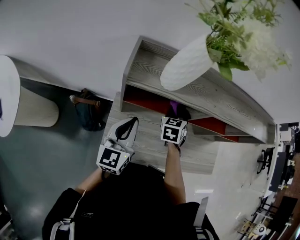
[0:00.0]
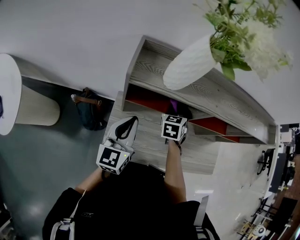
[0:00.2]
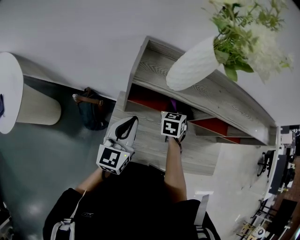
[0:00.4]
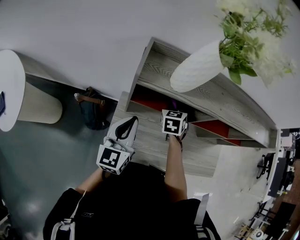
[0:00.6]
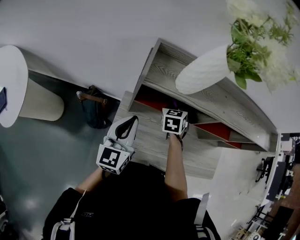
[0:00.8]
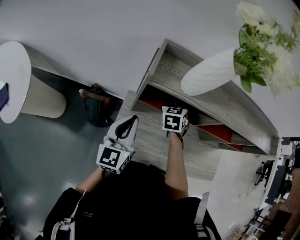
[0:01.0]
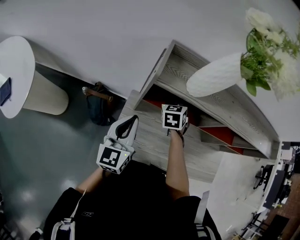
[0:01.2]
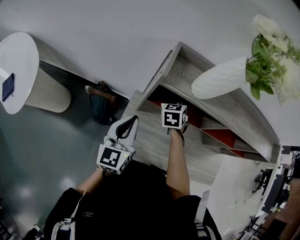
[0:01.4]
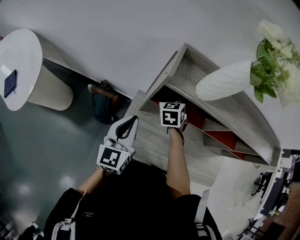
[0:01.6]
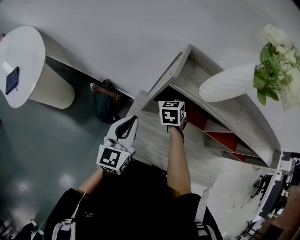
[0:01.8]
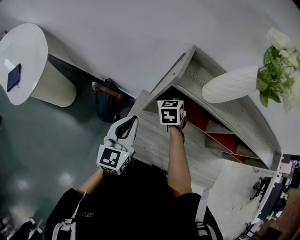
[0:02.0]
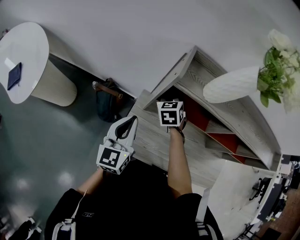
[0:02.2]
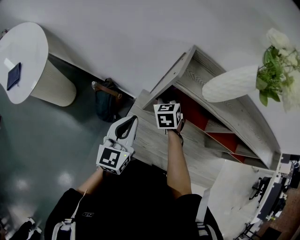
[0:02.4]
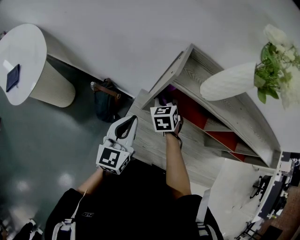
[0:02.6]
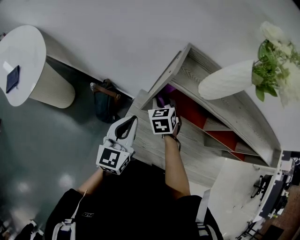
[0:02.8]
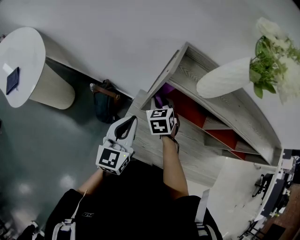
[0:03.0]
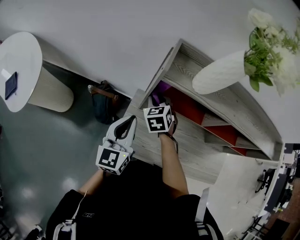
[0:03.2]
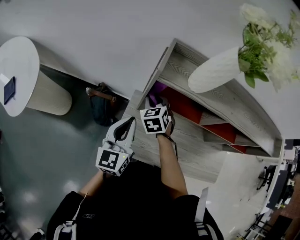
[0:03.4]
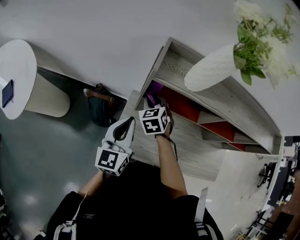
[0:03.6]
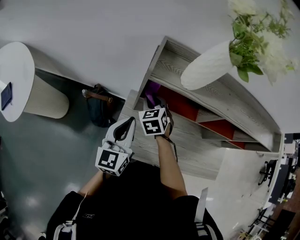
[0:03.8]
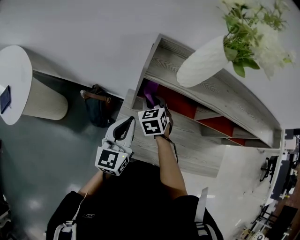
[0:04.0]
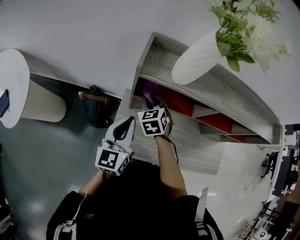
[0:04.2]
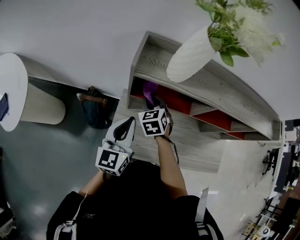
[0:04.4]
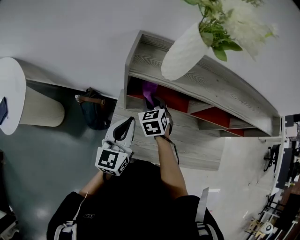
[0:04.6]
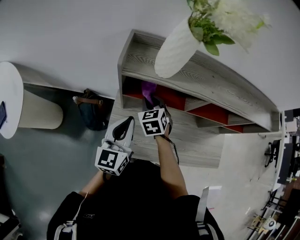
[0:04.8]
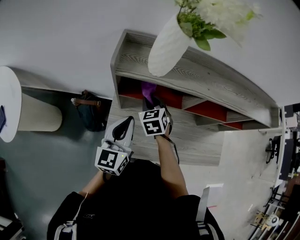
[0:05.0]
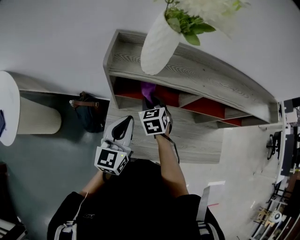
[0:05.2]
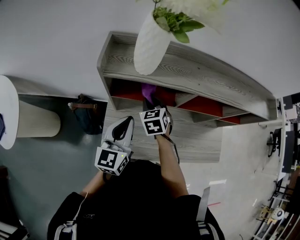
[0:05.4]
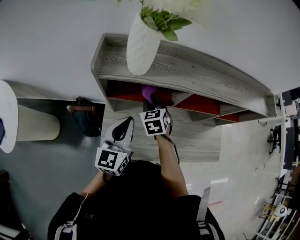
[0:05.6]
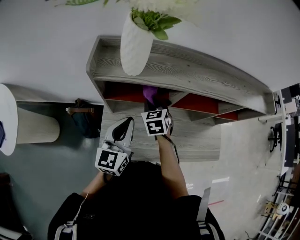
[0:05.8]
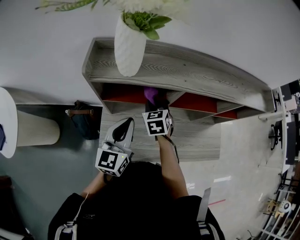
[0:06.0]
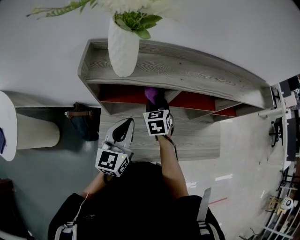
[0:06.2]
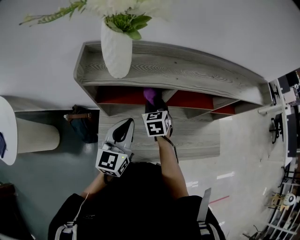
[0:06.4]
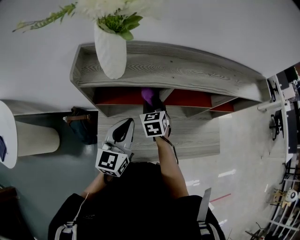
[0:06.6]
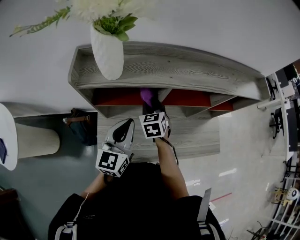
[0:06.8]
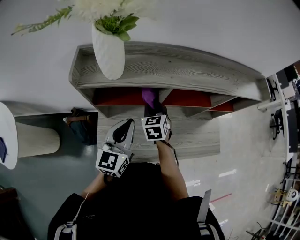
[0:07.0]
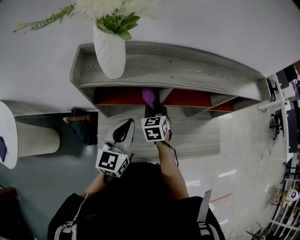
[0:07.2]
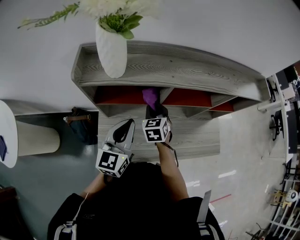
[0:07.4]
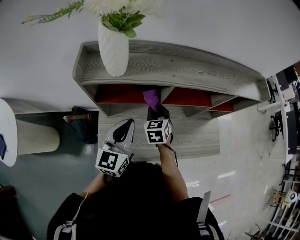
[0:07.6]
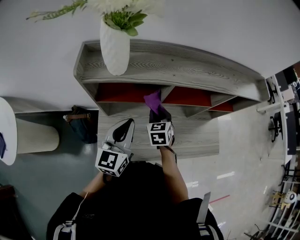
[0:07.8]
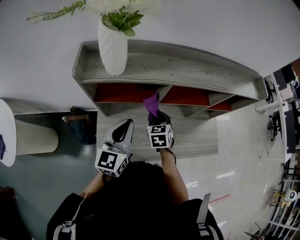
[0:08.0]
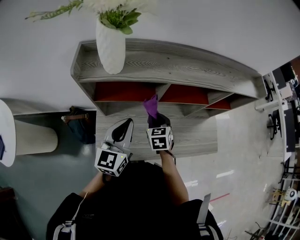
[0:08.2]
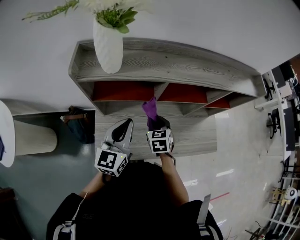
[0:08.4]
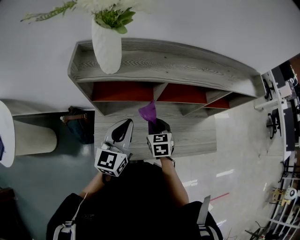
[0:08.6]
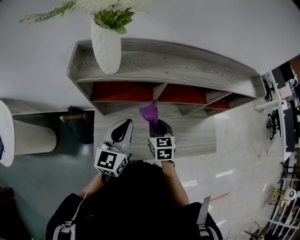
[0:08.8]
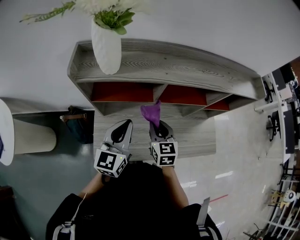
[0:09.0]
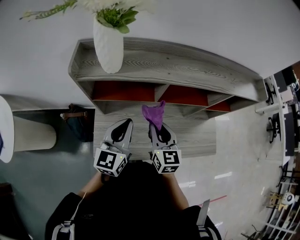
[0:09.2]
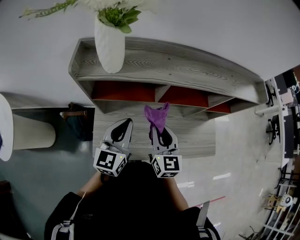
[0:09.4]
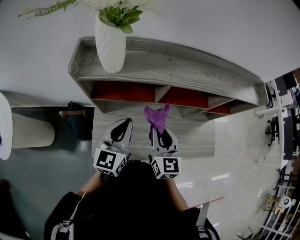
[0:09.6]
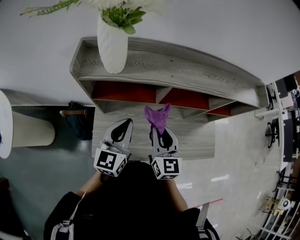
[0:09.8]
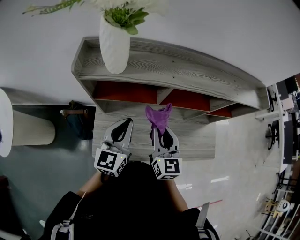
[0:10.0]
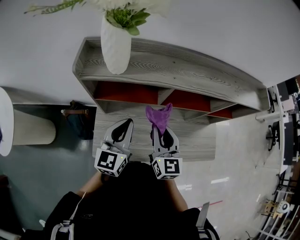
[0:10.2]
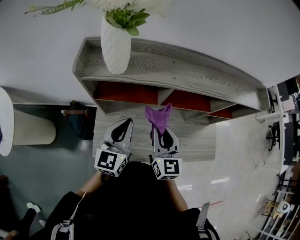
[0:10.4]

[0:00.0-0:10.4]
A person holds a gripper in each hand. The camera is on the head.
0:00.0 to 0:01.4: The left gripper moves to the left, some 10 cm. The right gripper shifts roughly 15 cm to the left.
0:01.4 to 0:03.0: The right gripper is displaced to the left by approximately 10 cm.
0:03.0 to 0:04.4: The grippers both shift to the right by some 5 cm.
0:04.4 to 0:06.0: The grippers both shift to the right by roughly 10 cm.
0:06.0 to 0:07.4: The right gripper moves about 5 cm.
0:07.4 to 0:09.0: The right gripper heads backward, covering some 10 cm.
0:09.0 to 0:10.4: The right gripper travels upward by approximately 5 cm.

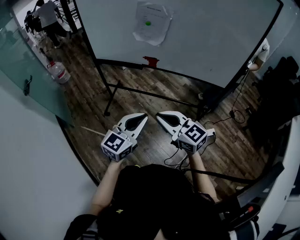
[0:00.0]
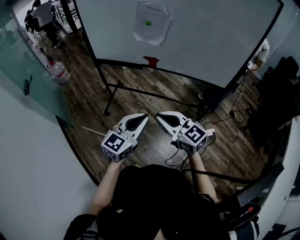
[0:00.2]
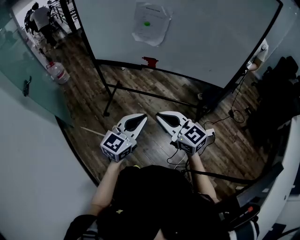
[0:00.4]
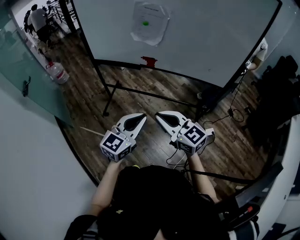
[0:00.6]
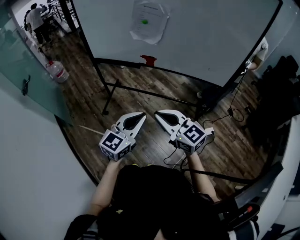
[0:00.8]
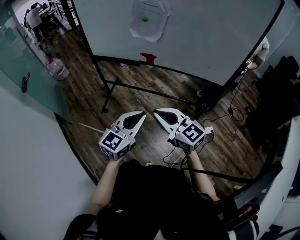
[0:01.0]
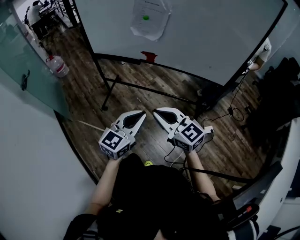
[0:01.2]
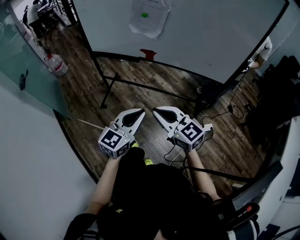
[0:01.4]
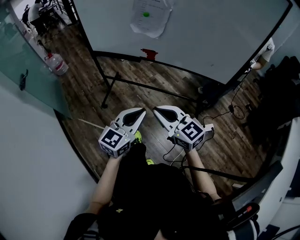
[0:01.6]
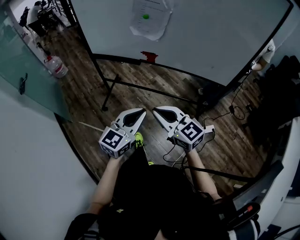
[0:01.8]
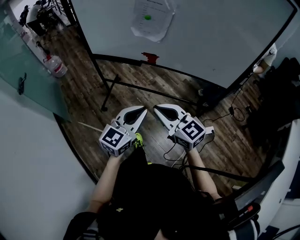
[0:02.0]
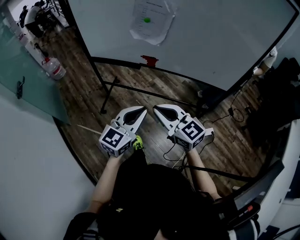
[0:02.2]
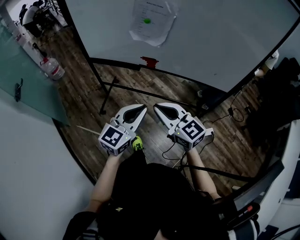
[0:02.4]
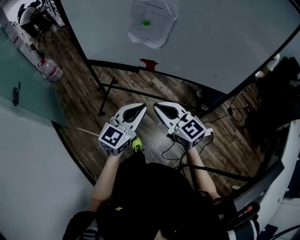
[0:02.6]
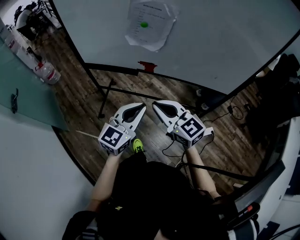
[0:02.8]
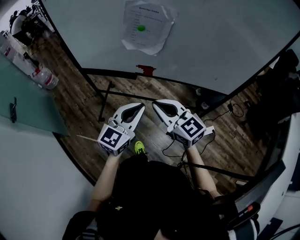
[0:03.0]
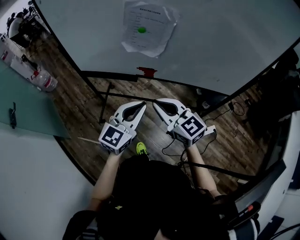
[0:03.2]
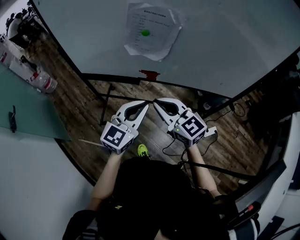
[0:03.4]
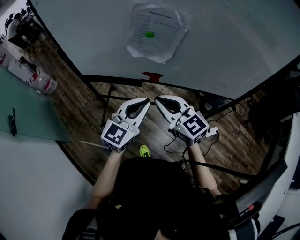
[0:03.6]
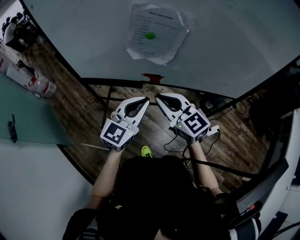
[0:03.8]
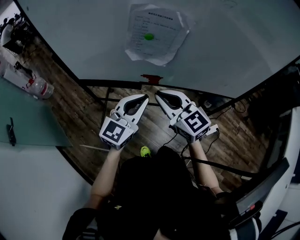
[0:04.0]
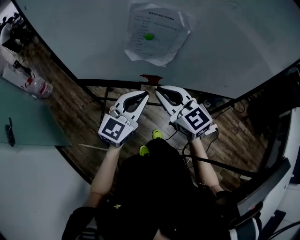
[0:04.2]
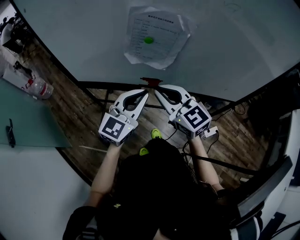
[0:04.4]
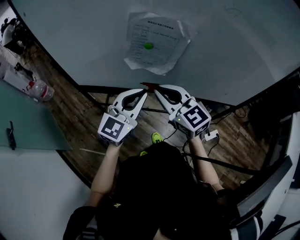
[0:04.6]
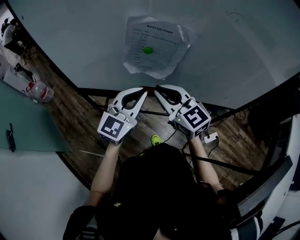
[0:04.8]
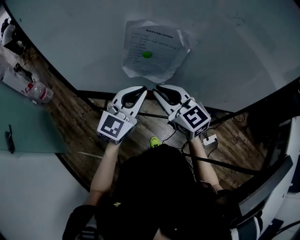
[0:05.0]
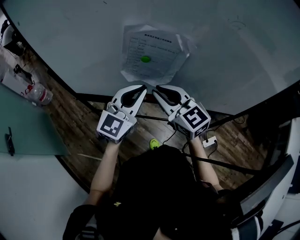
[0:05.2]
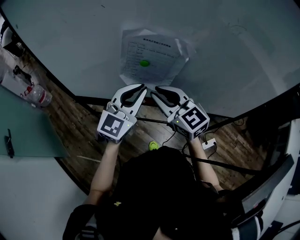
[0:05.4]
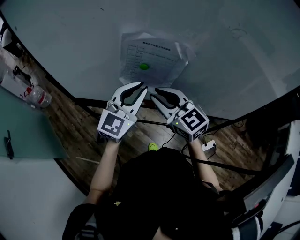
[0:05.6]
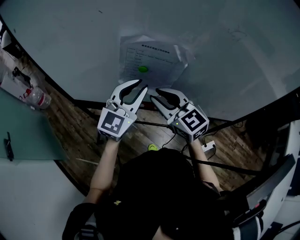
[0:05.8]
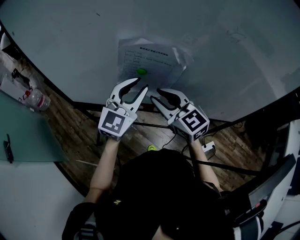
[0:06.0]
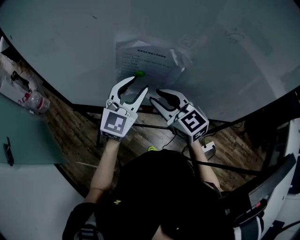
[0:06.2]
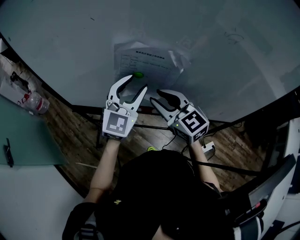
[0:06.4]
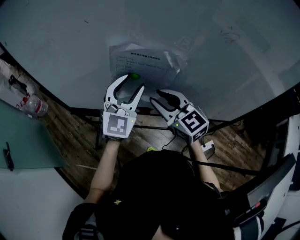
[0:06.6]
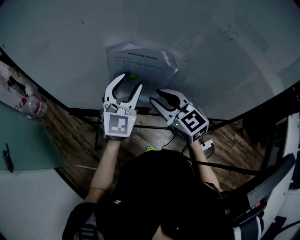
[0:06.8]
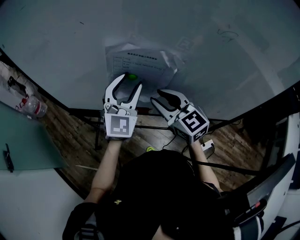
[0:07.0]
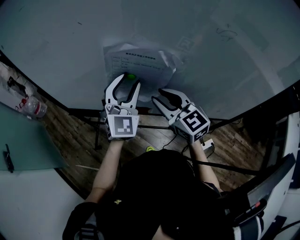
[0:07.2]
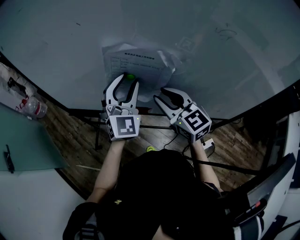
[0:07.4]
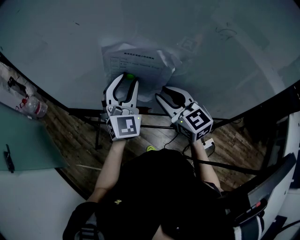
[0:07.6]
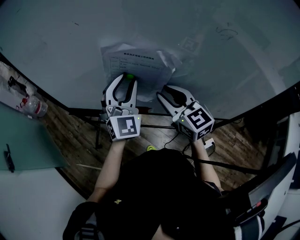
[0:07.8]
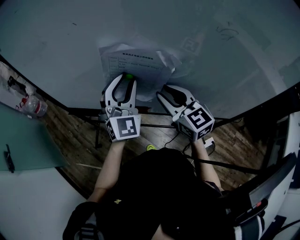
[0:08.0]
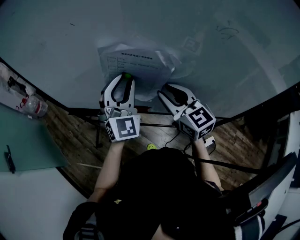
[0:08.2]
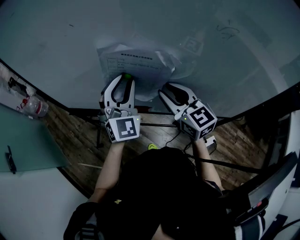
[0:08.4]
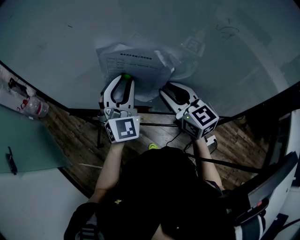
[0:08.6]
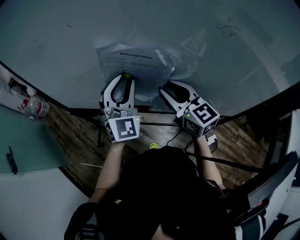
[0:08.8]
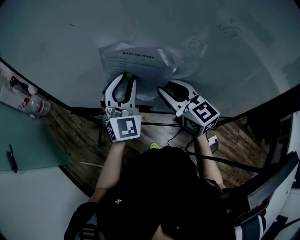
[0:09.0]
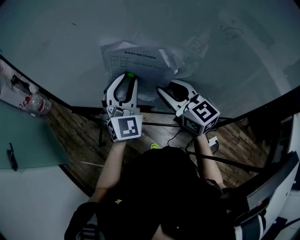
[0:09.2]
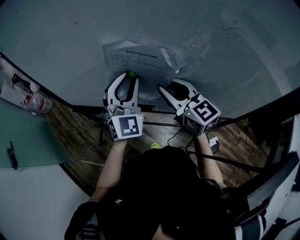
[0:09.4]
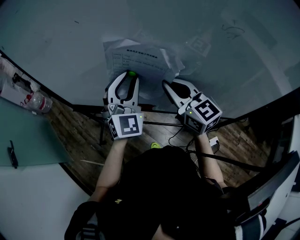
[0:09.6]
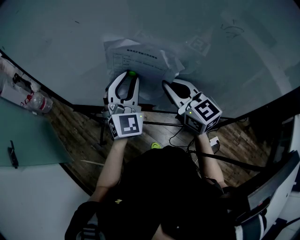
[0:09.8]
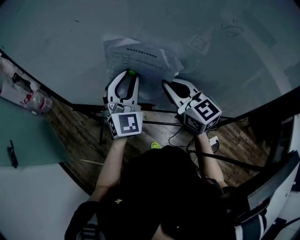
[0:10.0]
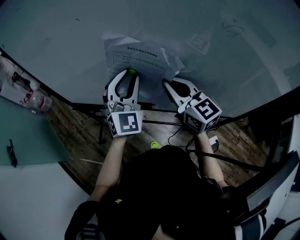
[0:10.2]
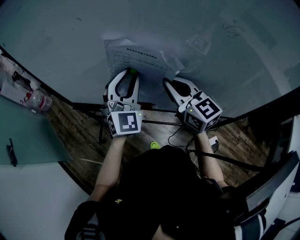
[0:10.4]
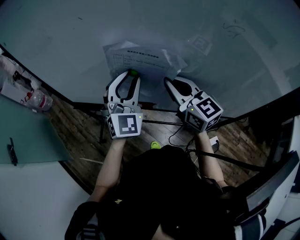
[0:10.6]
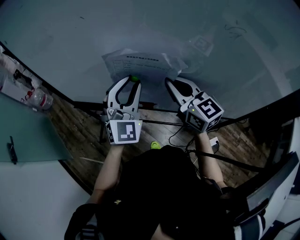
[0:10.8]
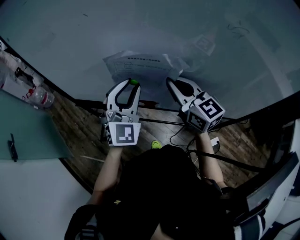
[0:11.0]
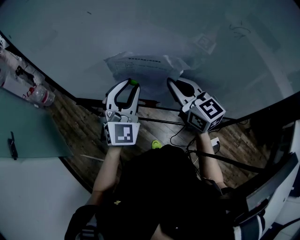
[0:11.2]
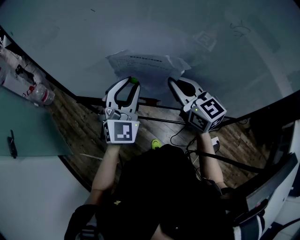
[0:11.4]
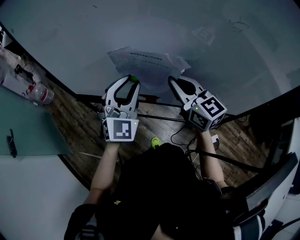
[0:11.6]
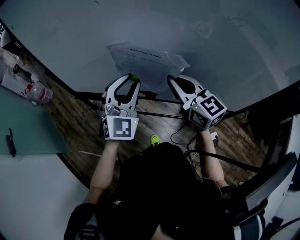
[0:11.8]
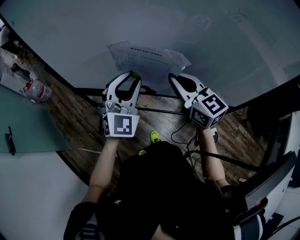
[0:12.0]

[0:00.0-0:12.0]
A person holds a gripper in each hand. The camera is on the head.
0:00.0 to 0:01.6: The grippers make only small movements.
0:01.6 to 0:03.0: The two grippers go some 20 cm forward.
0:03.0 to 0:04.4: The two grippers go roughly 15 cm forward.
0:04.4 to 0:06.0: The right gripper shifts some 10 cm forward, and opens up; the left gripper heads forward and upward, covering some 15 cm, and opens up.
0:06.0 to 0:07.6: The right gripper is displaced to the right by roughly 5 cm. The left gripper rotates some 30 degrees.
0:07.6 to 0:09.0: The grippers move only a little.
0:09.0 to 0:10.4: The right gripper closes up.
0:10.4 to 0:12.0: Both grippers move backward, some 5 cm.

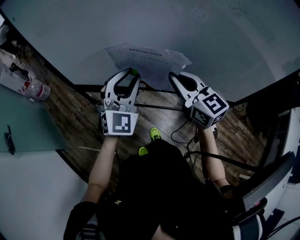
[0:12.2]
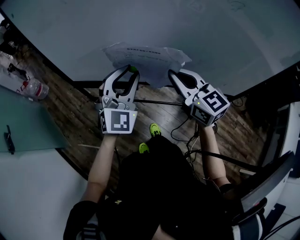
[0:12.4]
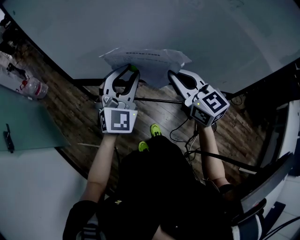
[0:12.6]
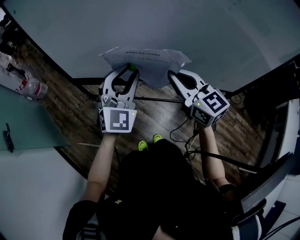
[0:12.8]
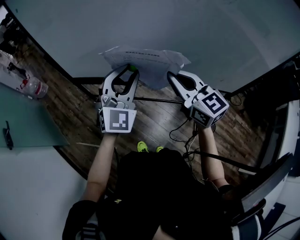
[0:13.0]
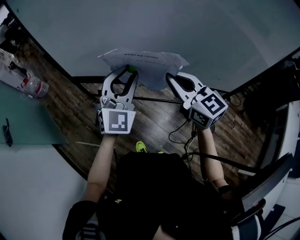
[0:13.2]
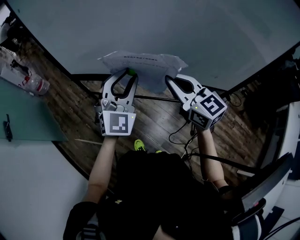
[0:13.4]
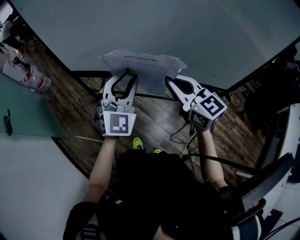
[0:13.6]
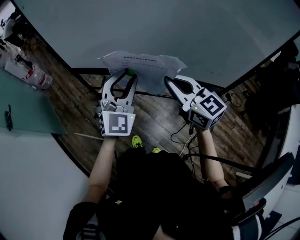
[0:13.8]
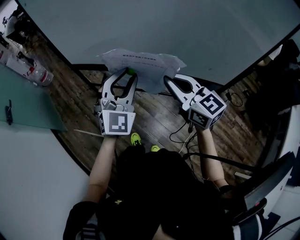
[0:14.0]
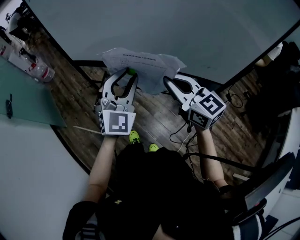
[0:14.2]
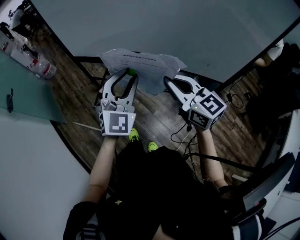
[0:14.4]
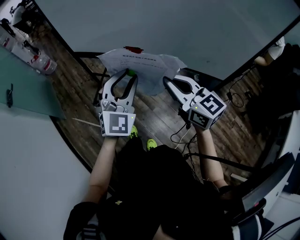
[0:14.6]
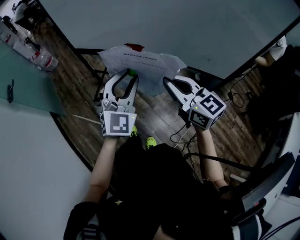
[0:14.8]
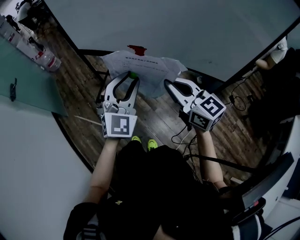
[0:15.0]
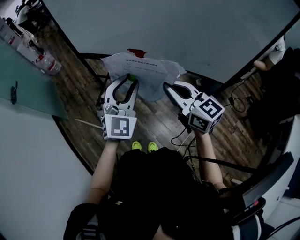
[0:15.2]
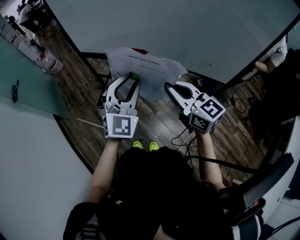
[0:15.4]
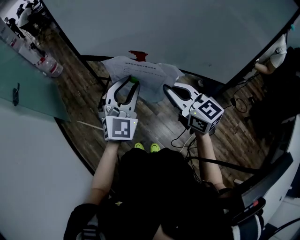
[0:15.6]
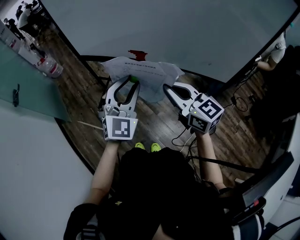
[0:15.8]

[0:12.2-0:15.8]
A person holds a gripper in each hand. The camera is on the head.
0:12.2 to 0:14.0: Both grippers move backward, about 15 cm.
0:14.0 to 0:15.8: Both grippers move backward, approximately 10 cm.
